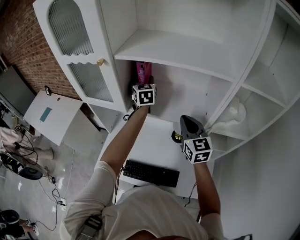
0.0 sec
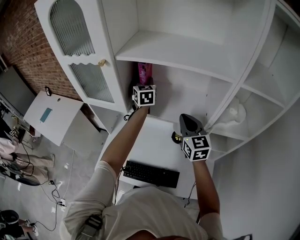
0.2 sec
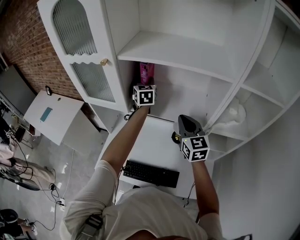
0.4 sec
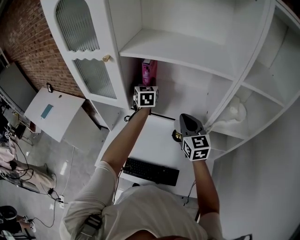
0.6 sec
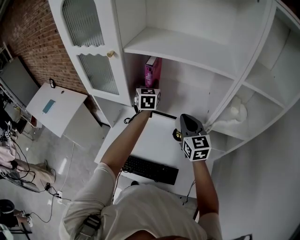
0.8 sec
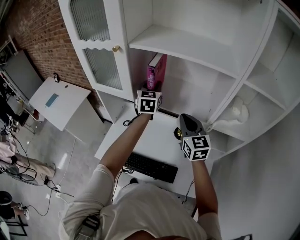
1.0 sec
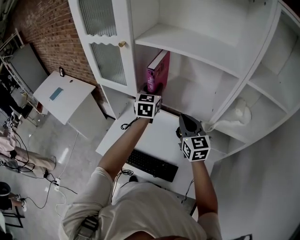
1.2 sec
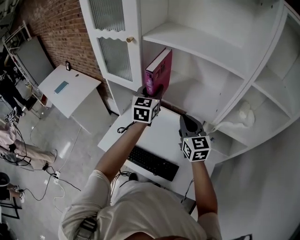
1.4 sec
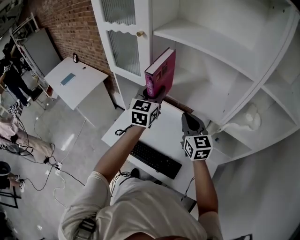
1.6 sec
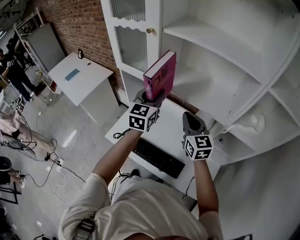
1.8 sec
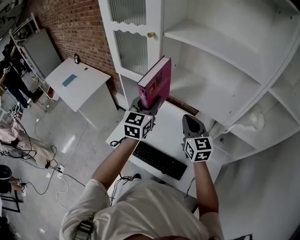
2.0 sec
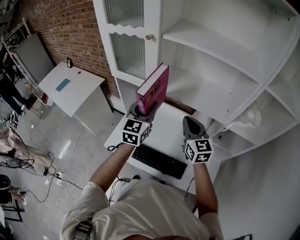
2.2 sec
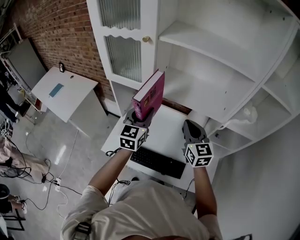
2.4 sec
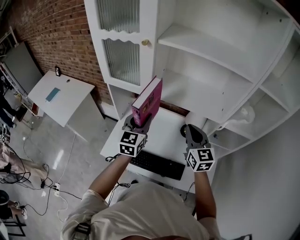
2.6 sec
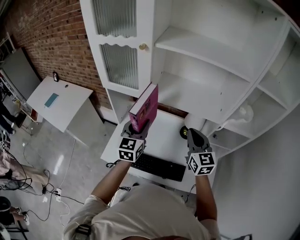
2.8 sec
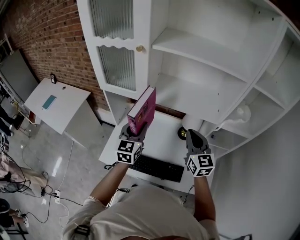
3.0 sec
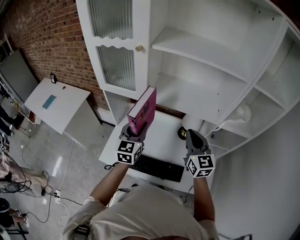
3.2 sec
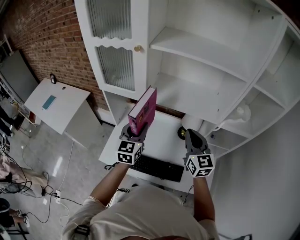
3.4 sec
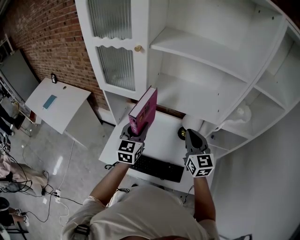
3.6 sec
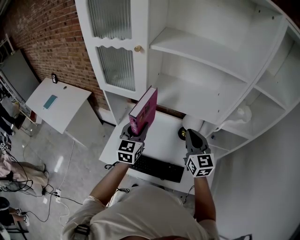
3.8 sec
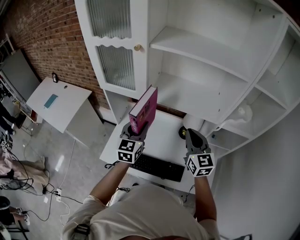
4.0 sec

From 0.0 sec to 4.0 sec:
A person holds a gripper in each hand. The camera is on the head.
From 0.0 sec to 1.4 sec: The right gripper ends up approximately 5 cm from where it was. Meanwhile the left gripper is displaced backward by some 15 cm.
From 1.4 sec to 2.6 sec: The right gripper ends up roughly 5 cm from where it was. Meanwhile the left gripper goes some 15 cm to the left, backward and downward.
From 2.6 sec to 4.0 sec: The grippers make only small movements.

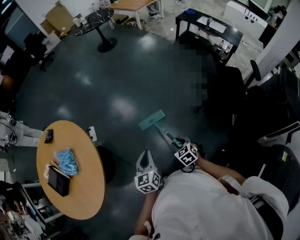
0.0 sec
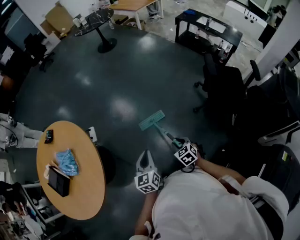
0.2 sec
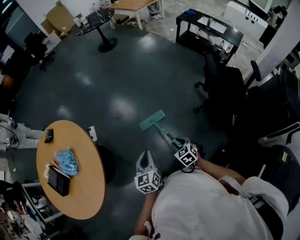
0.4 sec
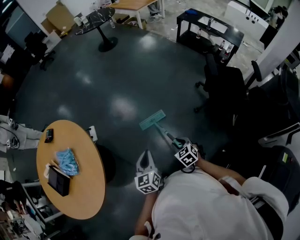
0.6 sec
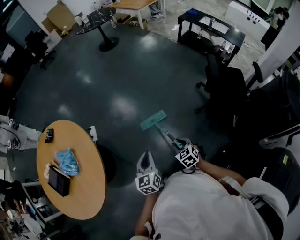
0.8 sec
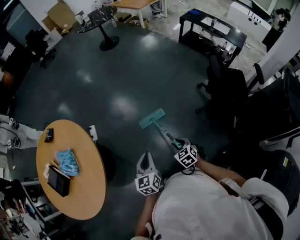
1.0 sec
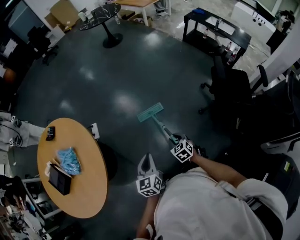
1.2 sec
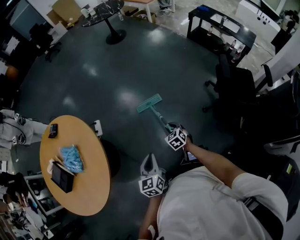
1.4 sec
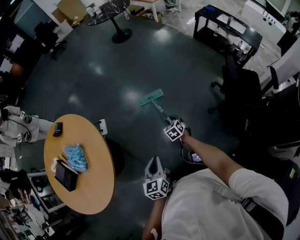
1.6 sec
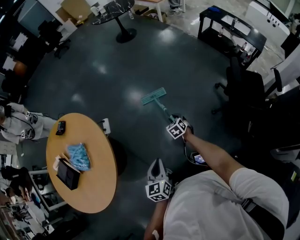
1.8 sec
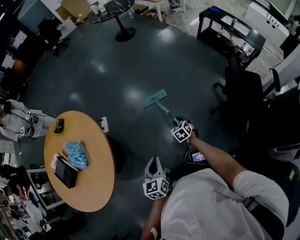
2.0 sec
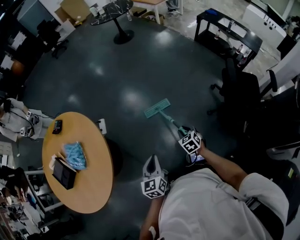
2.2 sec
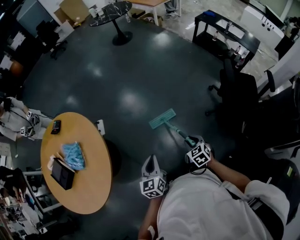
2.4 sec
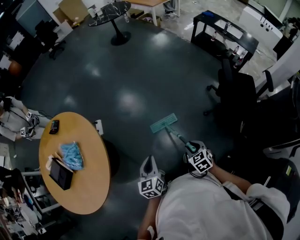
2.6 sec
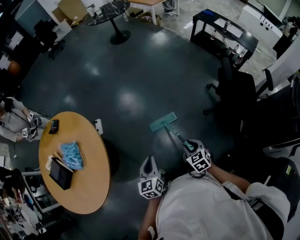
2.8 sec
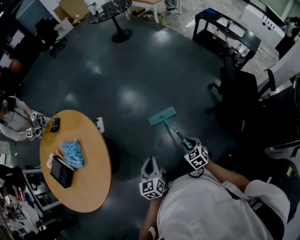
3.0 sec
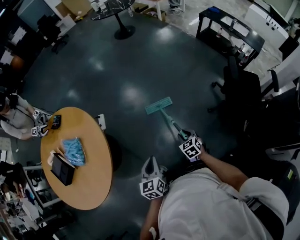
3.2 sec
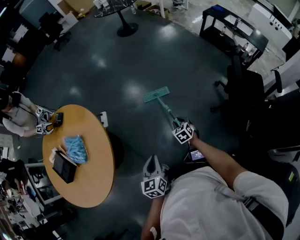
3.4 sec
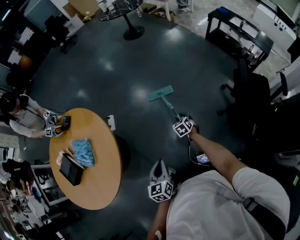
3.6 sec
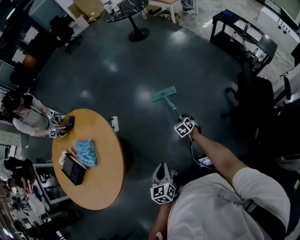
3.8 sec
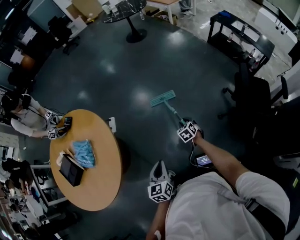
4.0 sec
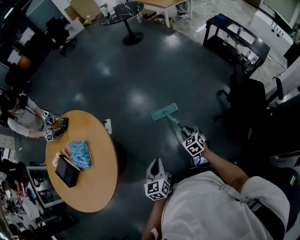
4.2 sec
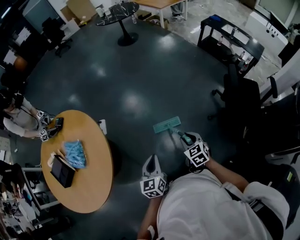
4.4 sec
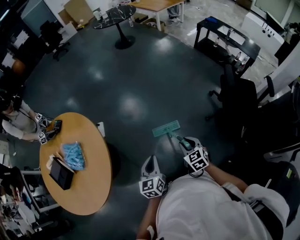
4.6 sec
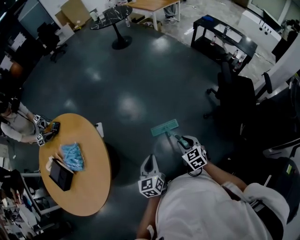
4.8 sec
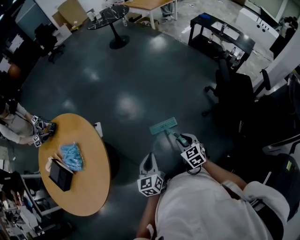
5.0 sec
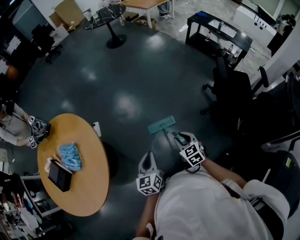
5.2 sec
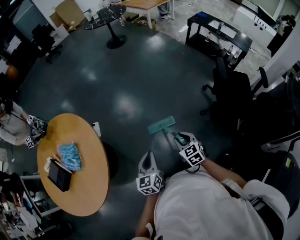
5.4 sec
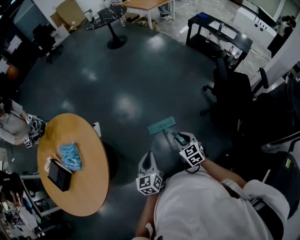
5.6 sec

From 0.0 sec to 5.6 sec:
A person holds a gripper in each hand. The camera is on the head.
From 0.0 sec to 1.4 sec: The right gripper goes approximately 15 cm forward.
From 1.4 sec to 2.8 sec: The right gripper goes about 15 cm backward and upward.
From 2.8 sec to 4.2 sec: The right gripper travels forward by approximately 15 cm.
From 4.2 sec to 5.6 sec: The right gripper goes approximately 10 cm backward and upward.

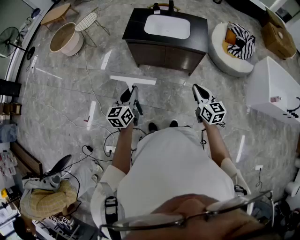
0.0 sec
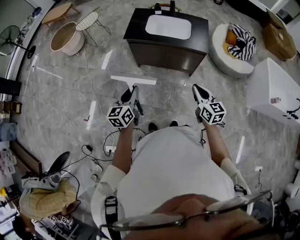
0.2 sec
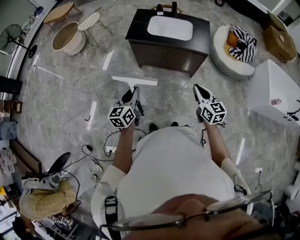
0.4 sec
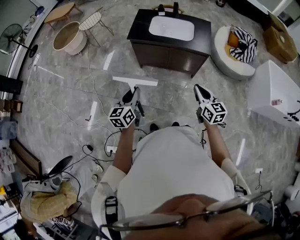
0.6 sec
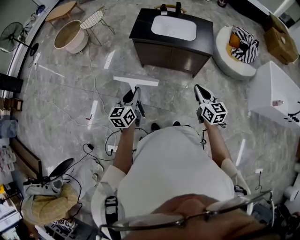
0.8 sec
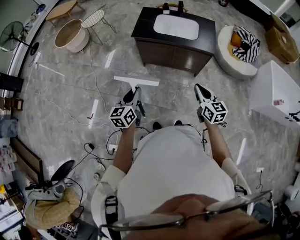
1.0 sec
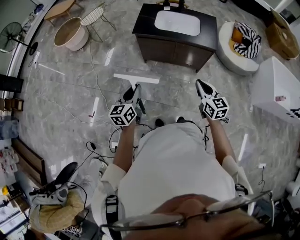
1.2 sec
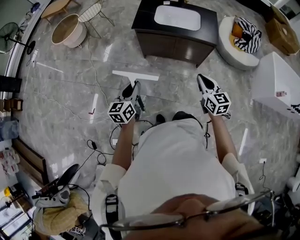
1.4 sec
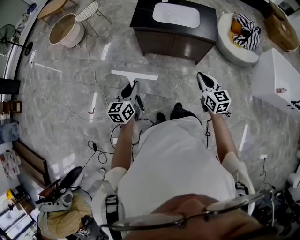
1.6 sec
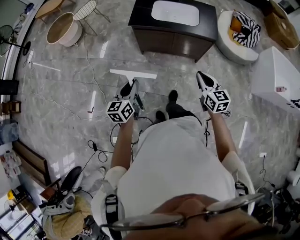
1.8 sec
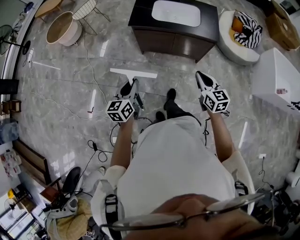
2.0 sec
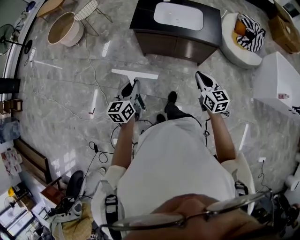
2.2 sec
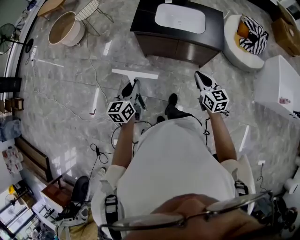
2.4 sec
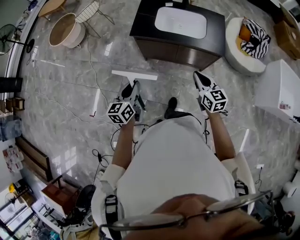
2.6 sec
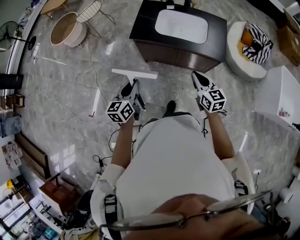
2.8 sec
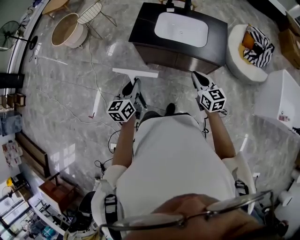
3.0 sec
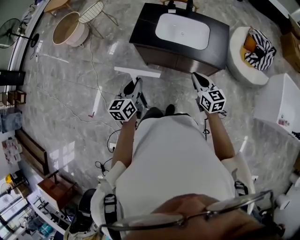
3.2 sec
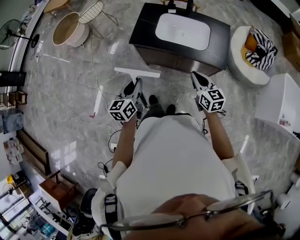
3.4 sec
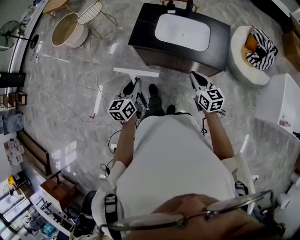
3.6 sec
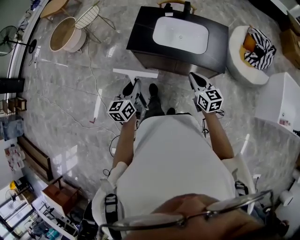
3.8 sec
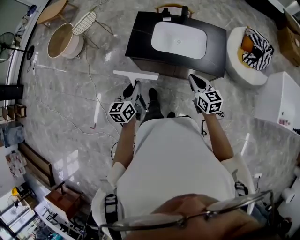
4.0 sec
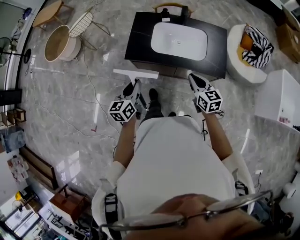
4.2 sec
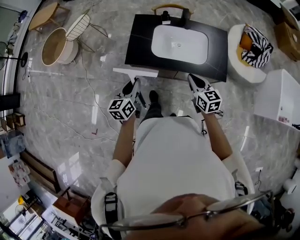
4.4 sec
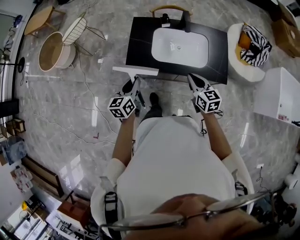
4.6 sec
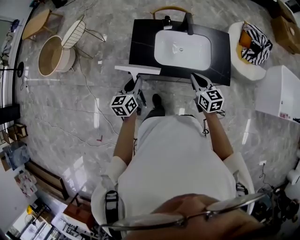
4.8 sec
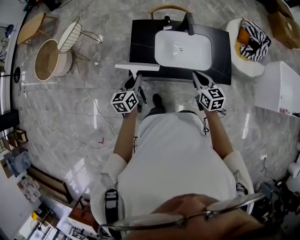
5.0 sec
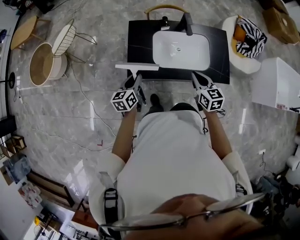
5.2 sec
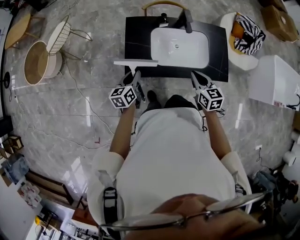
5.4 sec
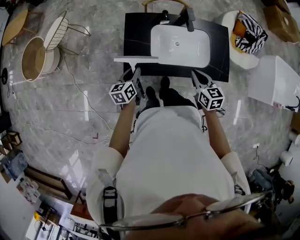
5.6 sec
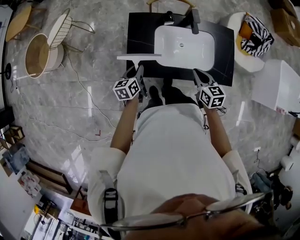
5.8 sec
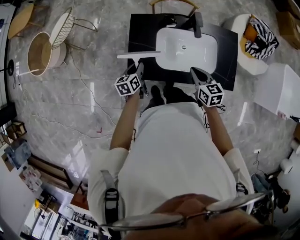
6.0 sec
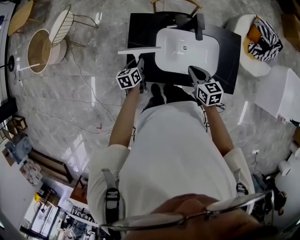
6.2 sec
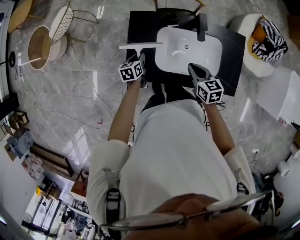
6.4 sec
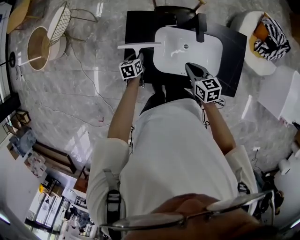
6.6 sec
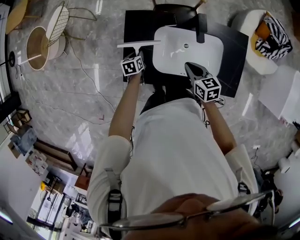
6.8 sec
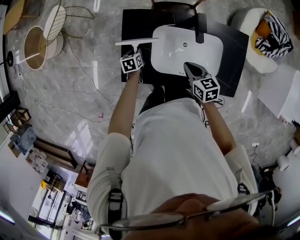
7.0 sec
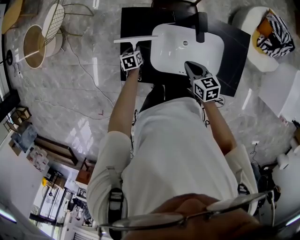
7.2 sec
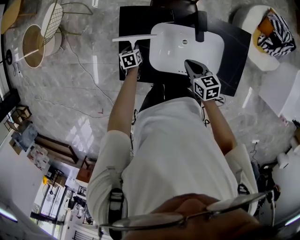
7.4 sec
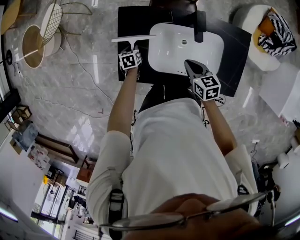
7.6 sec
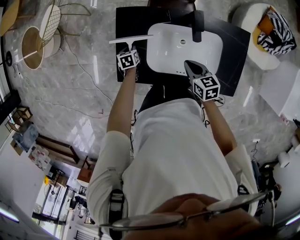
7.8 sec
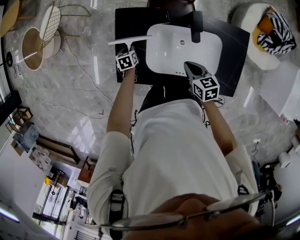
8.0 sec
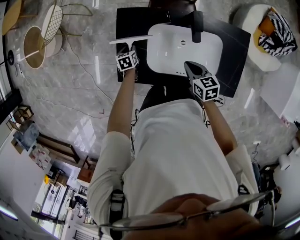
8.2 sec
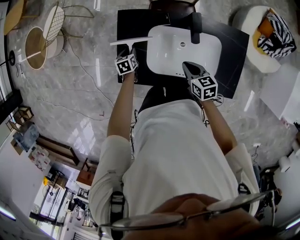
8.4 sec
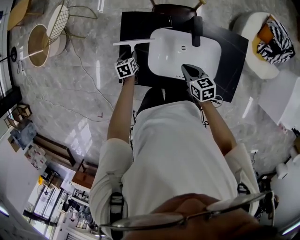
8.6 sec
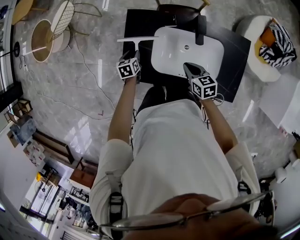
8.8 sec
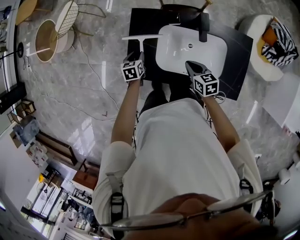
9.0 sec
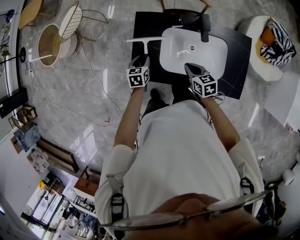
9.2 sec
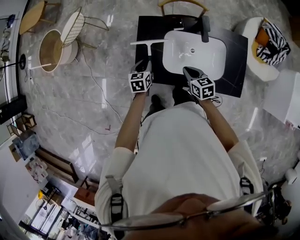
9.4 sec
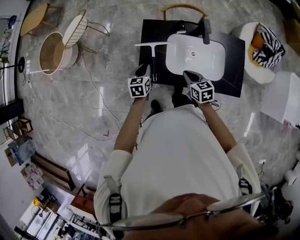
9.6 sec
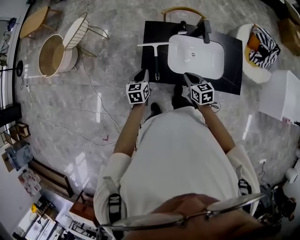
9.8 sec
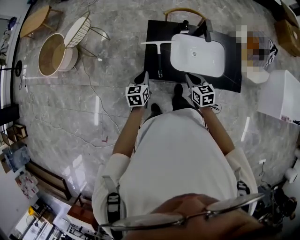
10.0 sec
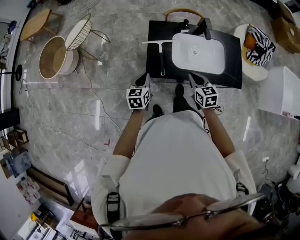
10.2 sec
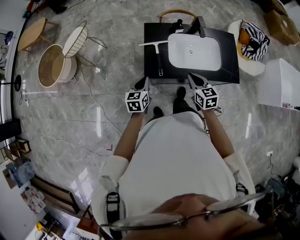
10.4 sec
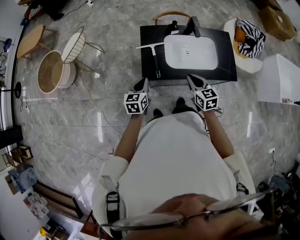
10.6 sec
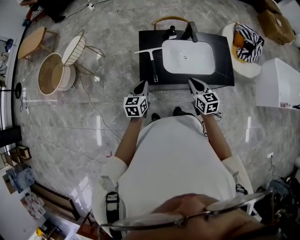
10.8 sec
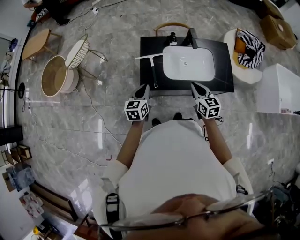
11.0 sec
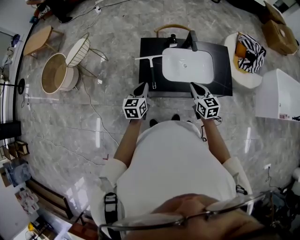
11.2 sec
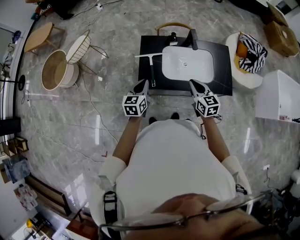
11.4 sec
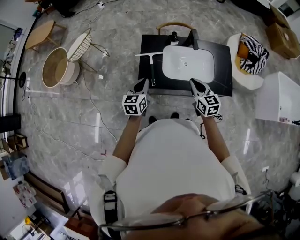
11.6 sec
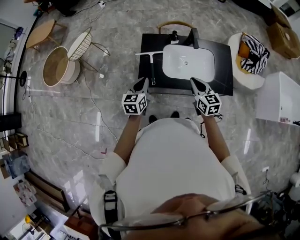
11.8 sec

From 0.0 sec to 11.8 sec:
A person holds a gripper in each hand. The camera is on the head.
From 0.0 sec to 1.4 sec: Both grippers move to the left, approximately 10 cm.
From 1.4 sec to 3.0 sec: The two grippers go approximately 25 cm forward.
From 3.0 sec to 4.4 sec: Both grippers move forward, some 20 cm.
From 4.4 sec to 6.0 sec: The right gripper is displaced forward by approximately 20 cm. The left gripper goes about 30 cm forward and downward, and swivels approximately 20 degrees.
From 6.0 sec to 7.4 sec: The left gripper goes roughly 20 cm downward and forward, and turns by some 30 degrees, while the right gripper goes some 10 cm downward and forward.
From 7.4 sec to 8.8 sec: The left gripper heads upward, covering approximately 5 cm.
From 8.8 sec to 10.4 sec: The left gripper is displaced backward, upward and to the left by some 30 cm, rotates some 30 degrees, and closes; the right gripper moves to the left, backward and upward, approximately 25 cm, and swivels roughly 30 degrees.
From 10.4 sec to 11.8 sec: The right gripper travels to the right and upward by about 10 cm. The left gripper travels upward and to the right by roughly 10 cm.

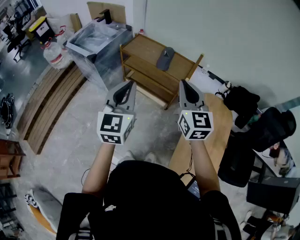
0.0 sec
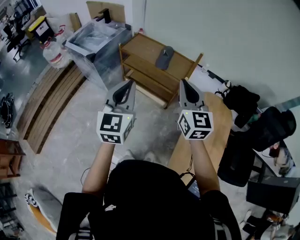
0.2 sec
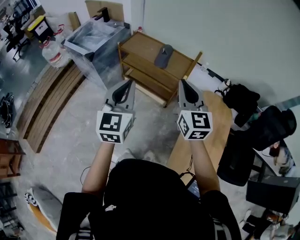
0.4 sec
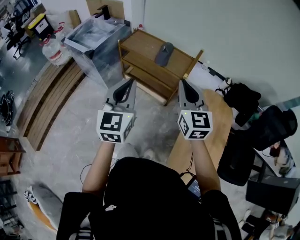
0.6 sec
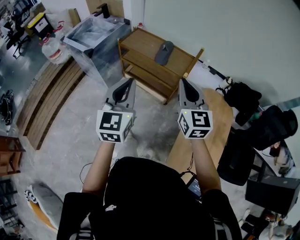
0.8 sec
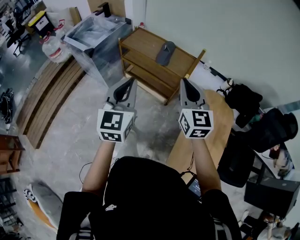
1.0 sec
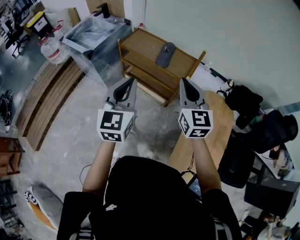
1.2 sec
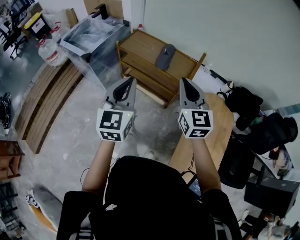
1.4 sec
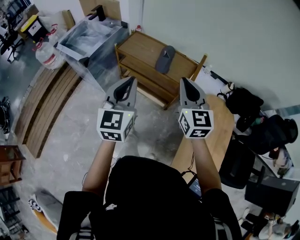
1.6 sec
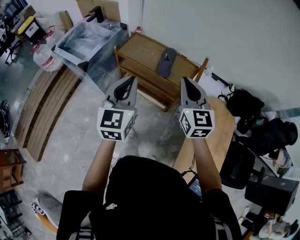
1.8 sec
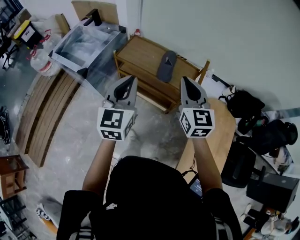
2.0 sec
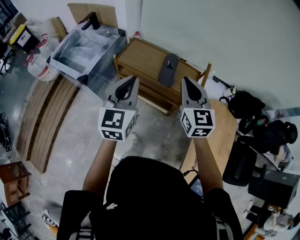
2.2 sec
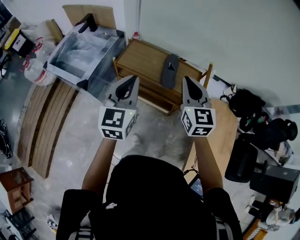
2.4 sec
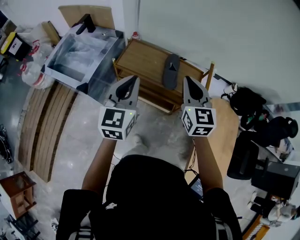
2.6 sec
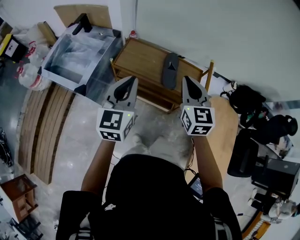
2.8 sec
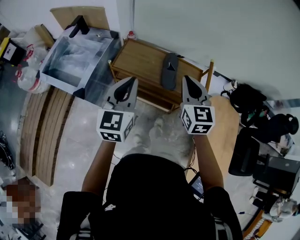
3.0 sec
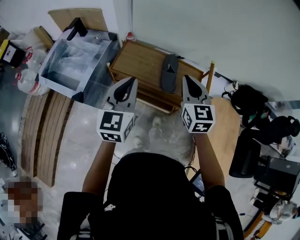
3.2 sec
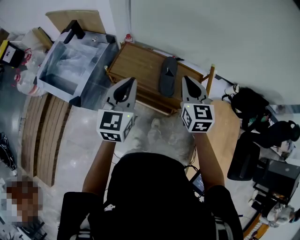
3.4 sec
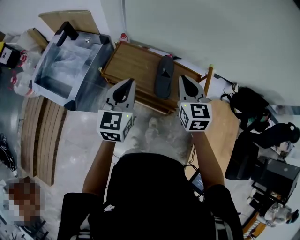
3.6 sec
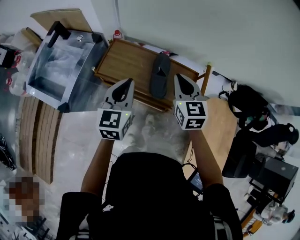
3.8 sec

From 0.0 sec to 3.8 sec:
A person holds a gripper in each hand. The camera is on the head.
From 0.0 sec to 1.2 sec: The right gripper shifts by some 5 cm. The left gripper ends up about 5 cm from where it was.
From 1.2 sec to 2.6 sec: Both grippers move forward and to the left, approximately 30 cm.
From 2.6 sec to 3.8 sec: Both grippers move forward and downward, approximately 20 cm.
